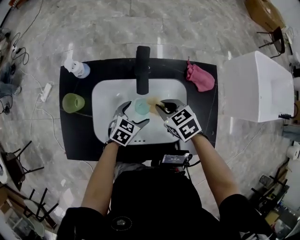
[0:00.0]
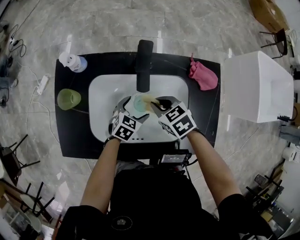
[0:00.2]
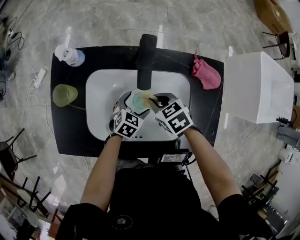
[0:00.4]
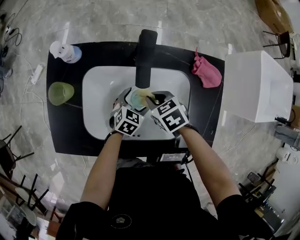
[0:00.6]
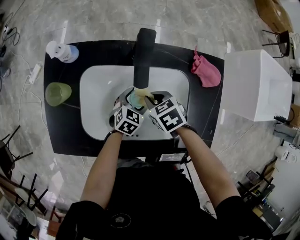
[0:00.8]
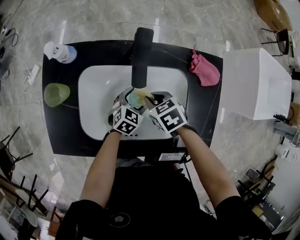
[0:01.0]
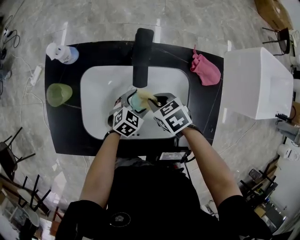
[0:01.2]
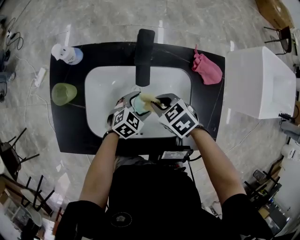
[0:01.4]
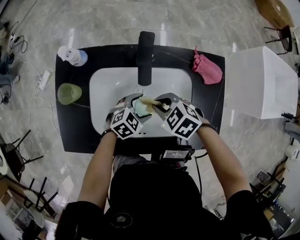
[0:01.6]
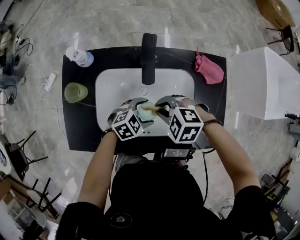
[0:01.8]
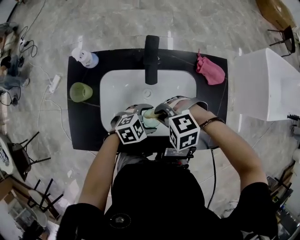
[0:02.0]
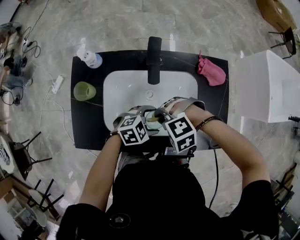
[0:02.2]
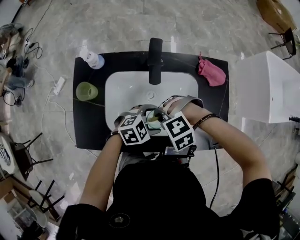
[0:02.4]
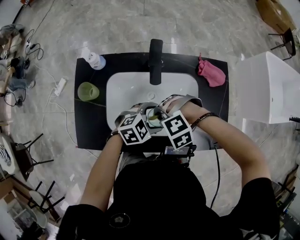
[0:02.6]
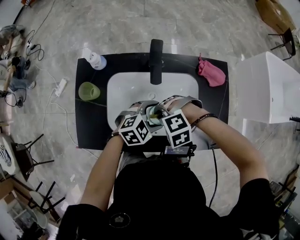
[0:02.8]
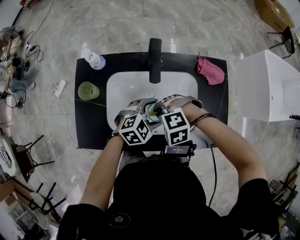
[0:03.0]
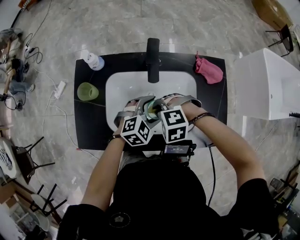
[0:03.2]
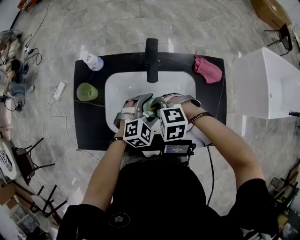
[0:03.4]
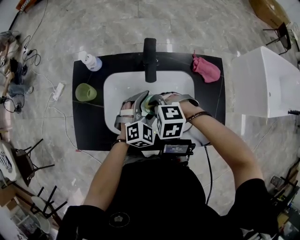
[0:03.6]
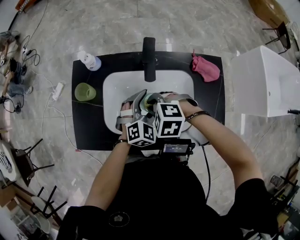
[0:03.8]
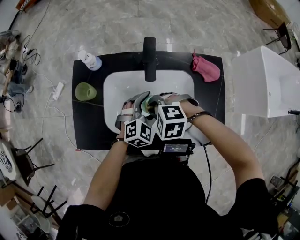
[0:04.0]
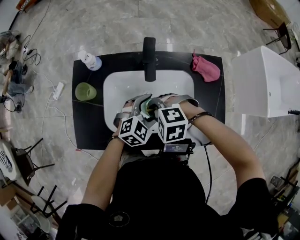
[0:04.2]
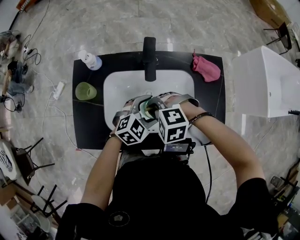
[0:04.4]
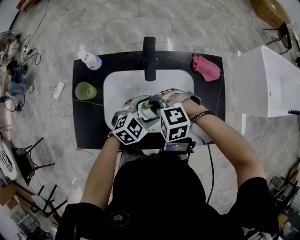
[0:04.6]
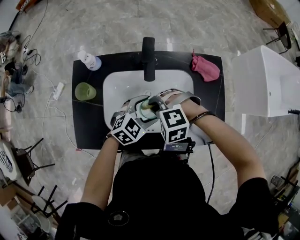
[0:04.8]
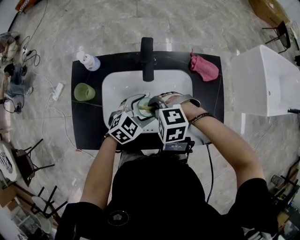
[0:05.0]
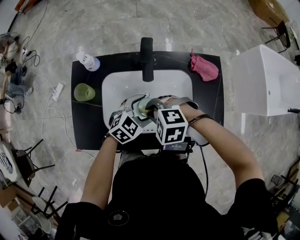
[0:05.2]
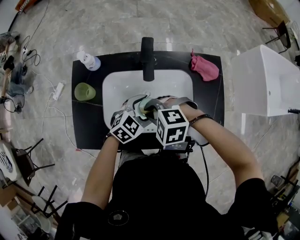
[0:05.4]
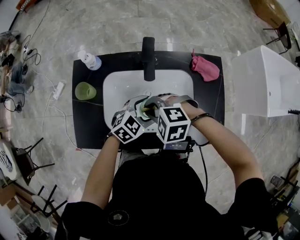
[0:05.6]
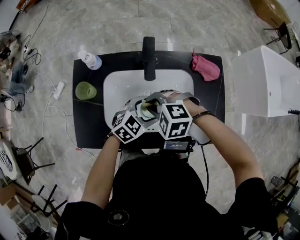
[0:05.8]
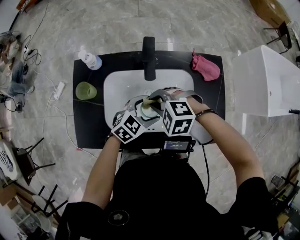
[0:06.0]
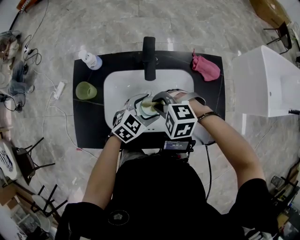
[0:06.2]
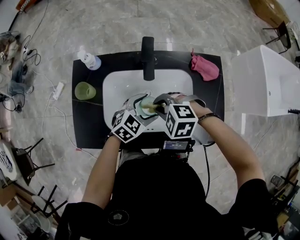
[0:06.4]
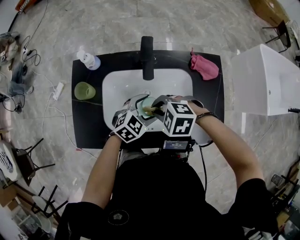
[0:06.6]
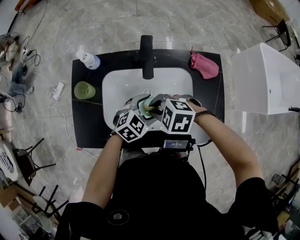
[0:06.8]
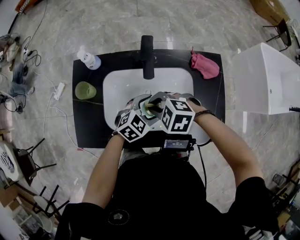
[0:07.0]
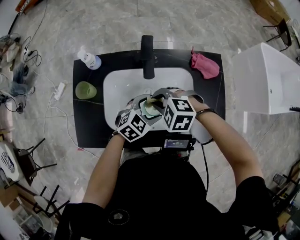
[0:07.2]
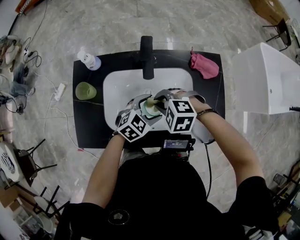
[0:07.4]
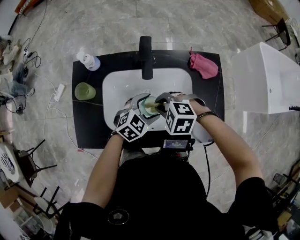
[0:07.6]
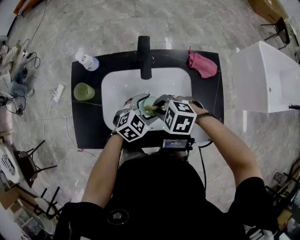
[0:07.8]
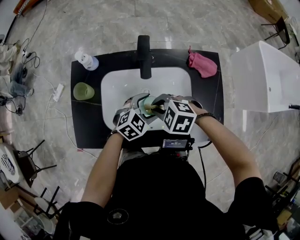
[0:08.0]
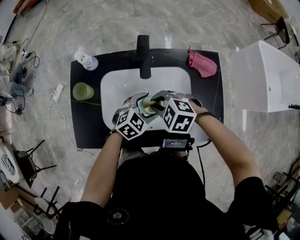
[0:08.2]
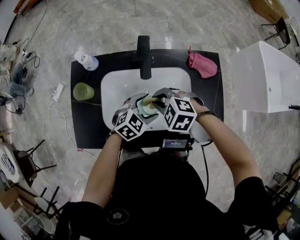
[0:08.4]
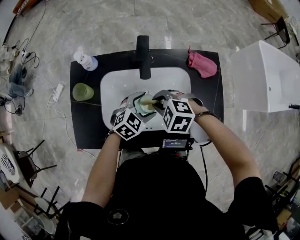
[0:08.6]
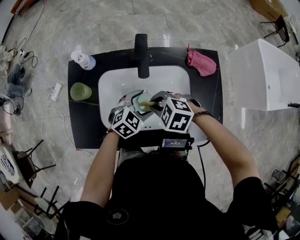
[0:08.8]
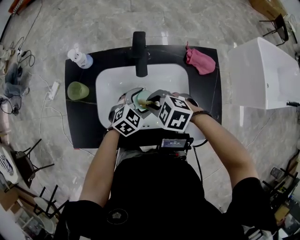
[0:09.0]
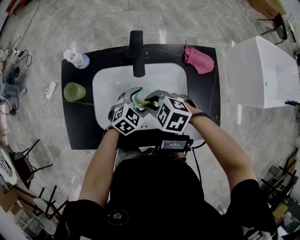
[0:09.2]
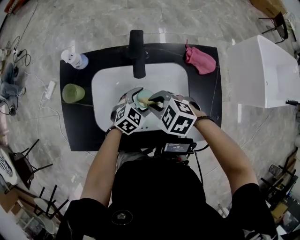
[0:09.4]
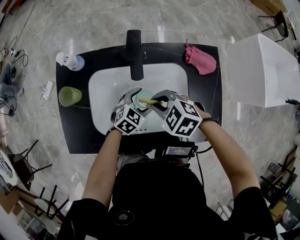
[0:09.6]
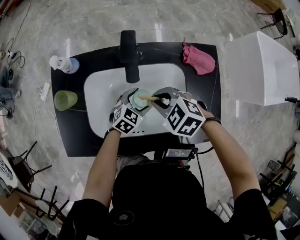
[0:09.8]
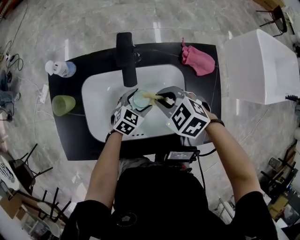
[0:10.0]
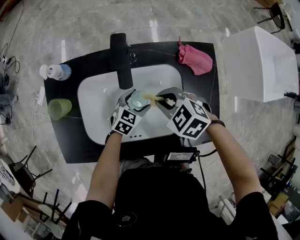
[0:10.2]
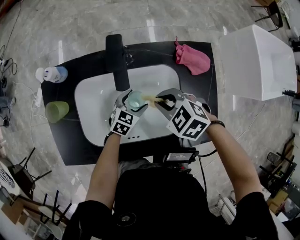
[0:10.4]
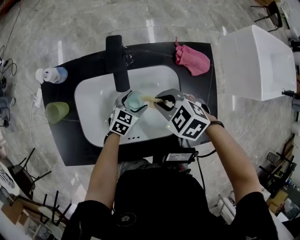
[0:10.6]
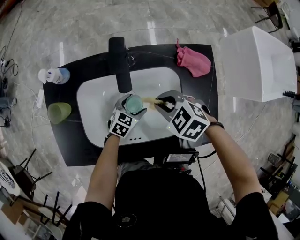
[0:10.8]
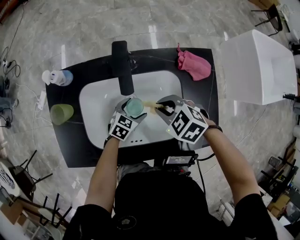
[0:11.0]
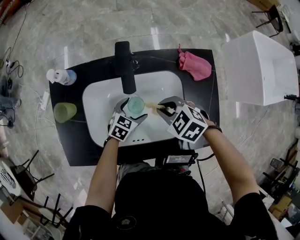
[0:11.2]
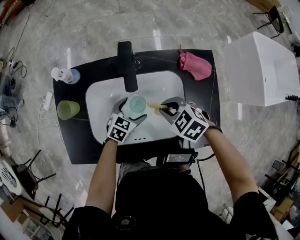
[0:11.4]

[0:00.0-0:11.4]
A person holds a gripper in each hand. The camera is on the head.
1.4 to 2.8 s: The left gripper heads upward, covering approximately 10 cm, and changes its angle by about 20 degrees. Meanwhile the right gripper changes place by roughly 10 cm, and rotates around the line of its fingers by roughly 60 degrees, counterclockwise from behind.
4.2 to 7.2 s: The grippers move only a little.
7.2 to 8.6 s: The grippers stay close to where they were, moving slightly.
8.6 to 10.0 s: The right gripper ends up roughly 5 cm from where it was. Meanwhile the left gripper travels downward by about 10 cm.
10.0 to 11.4 s: The grippers stay close to where they were, moving slightly.

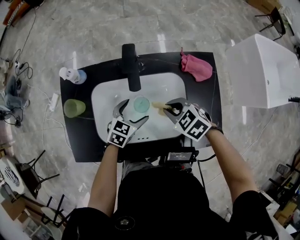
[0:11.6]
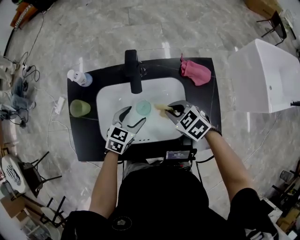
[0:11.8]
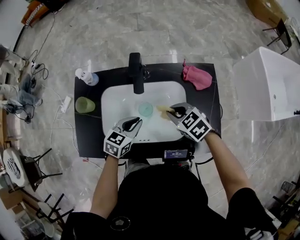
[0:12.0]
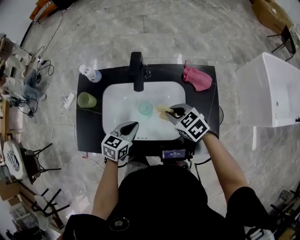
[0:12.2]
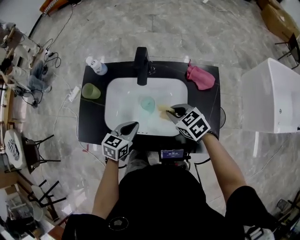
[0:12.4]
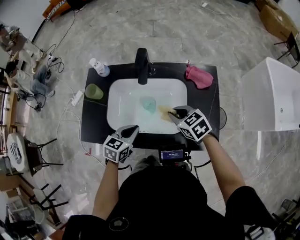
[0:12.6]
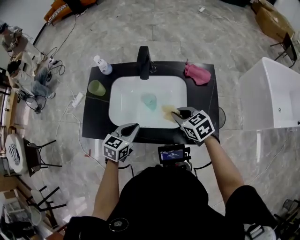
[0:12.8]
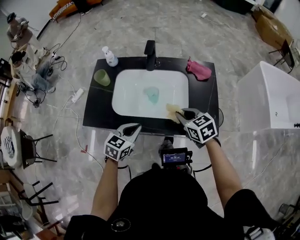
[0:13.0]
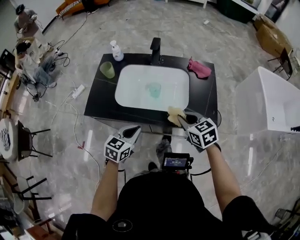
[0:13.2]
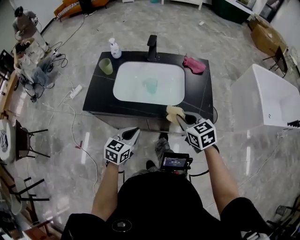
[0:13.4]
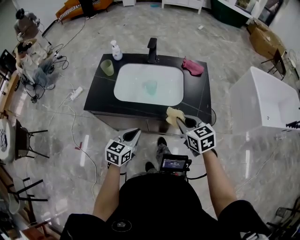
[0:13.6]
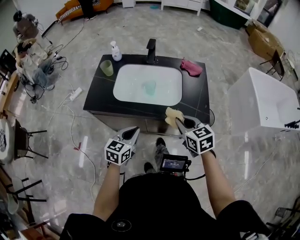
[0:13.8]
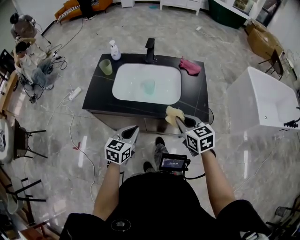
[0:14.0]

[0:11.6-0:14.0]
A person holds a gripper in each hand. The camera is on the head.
11.6 to 12.8 s: The right gripper moves backward and upward, some 10 cm, while the left gripper goes about 15 cm backward and upward, and closes its fingers.
12.8 to 14.0 s: The left gripper heads backward, covering some 15 cm; the right gripper shifts approximately 20 cm backward and upward.

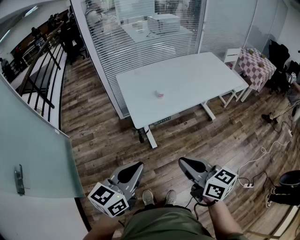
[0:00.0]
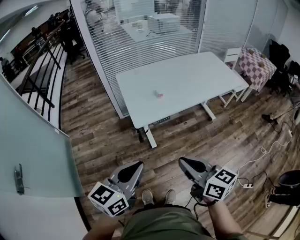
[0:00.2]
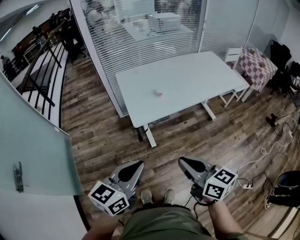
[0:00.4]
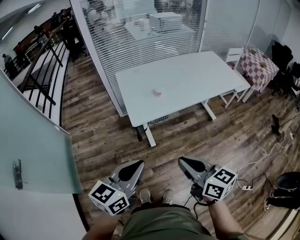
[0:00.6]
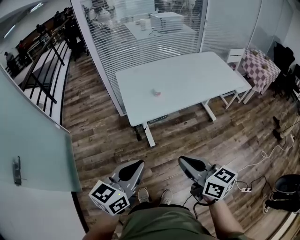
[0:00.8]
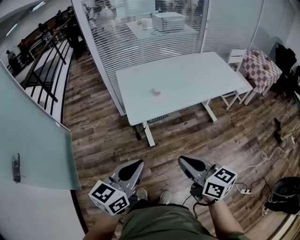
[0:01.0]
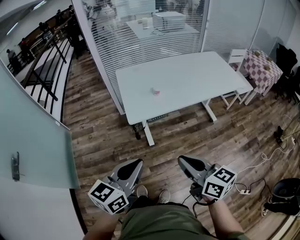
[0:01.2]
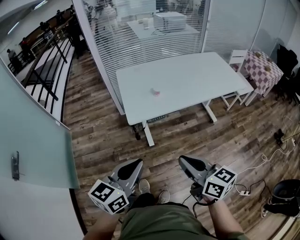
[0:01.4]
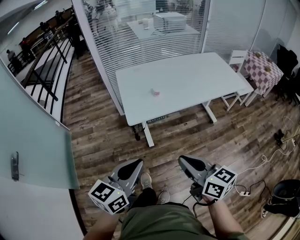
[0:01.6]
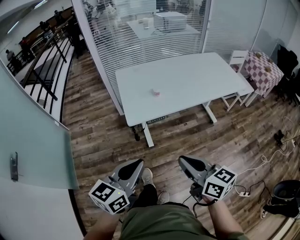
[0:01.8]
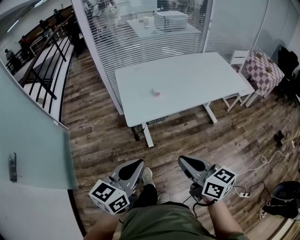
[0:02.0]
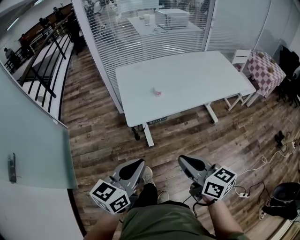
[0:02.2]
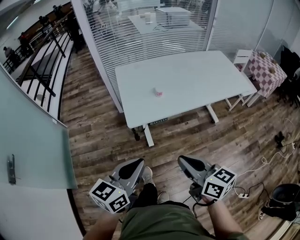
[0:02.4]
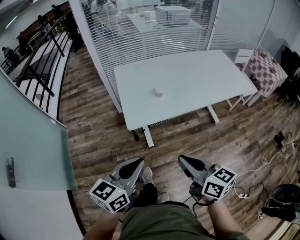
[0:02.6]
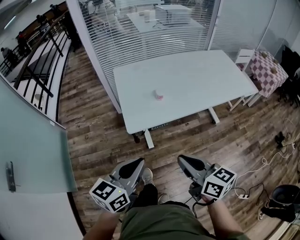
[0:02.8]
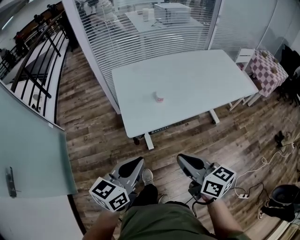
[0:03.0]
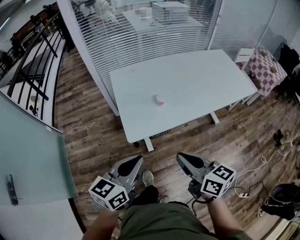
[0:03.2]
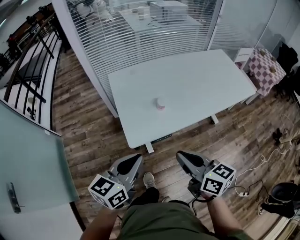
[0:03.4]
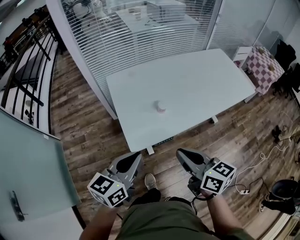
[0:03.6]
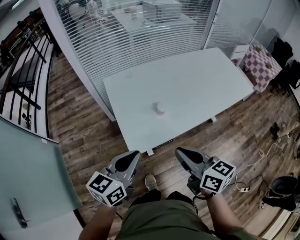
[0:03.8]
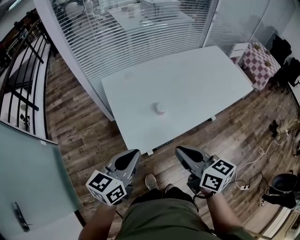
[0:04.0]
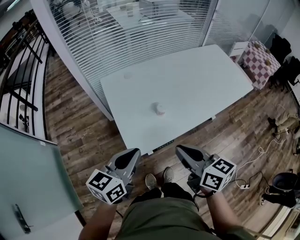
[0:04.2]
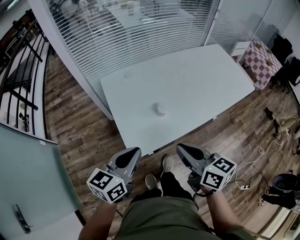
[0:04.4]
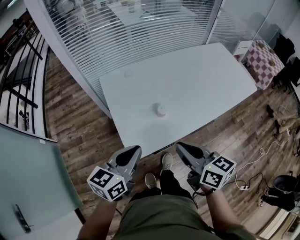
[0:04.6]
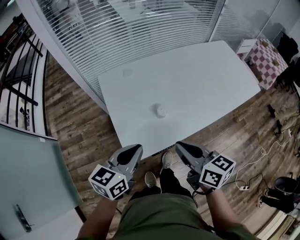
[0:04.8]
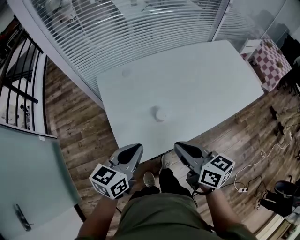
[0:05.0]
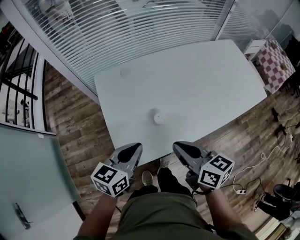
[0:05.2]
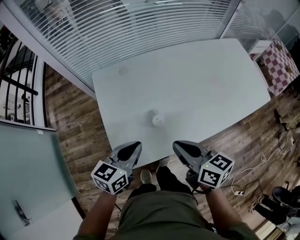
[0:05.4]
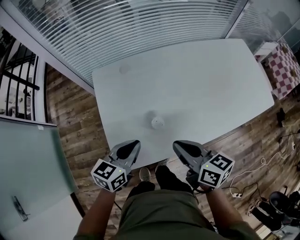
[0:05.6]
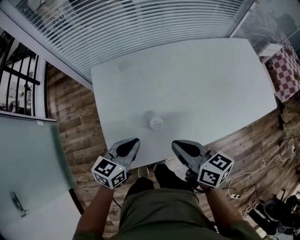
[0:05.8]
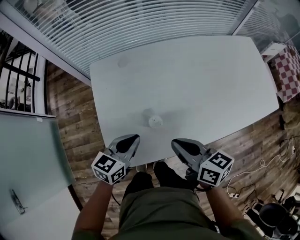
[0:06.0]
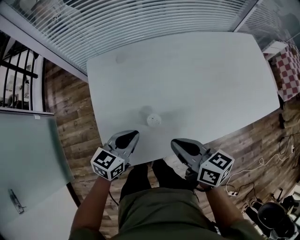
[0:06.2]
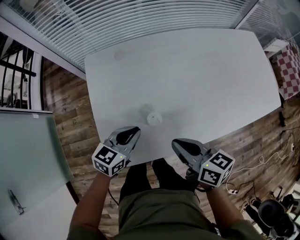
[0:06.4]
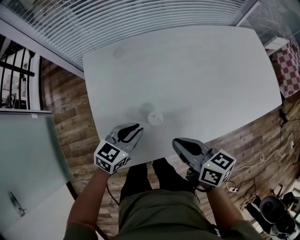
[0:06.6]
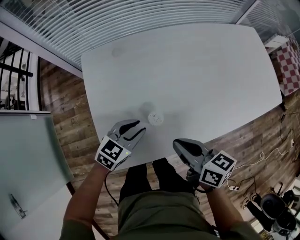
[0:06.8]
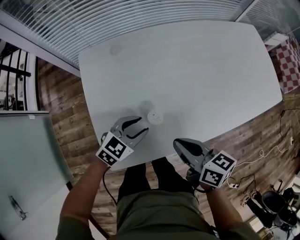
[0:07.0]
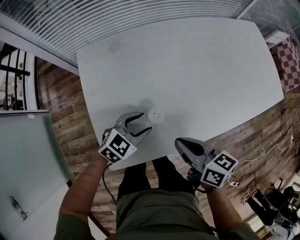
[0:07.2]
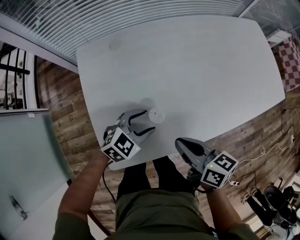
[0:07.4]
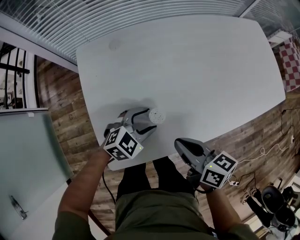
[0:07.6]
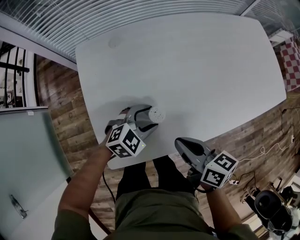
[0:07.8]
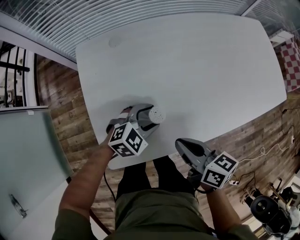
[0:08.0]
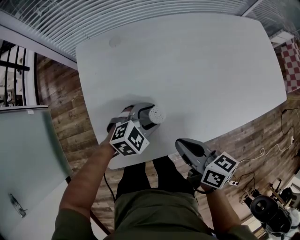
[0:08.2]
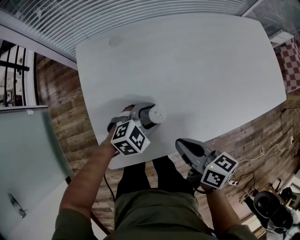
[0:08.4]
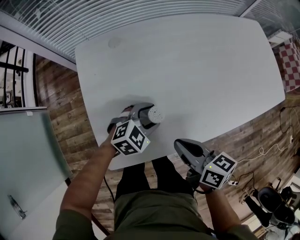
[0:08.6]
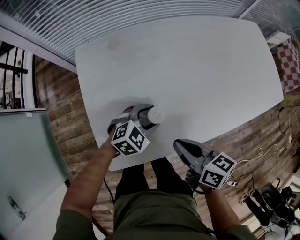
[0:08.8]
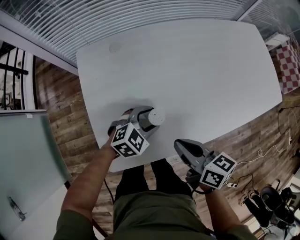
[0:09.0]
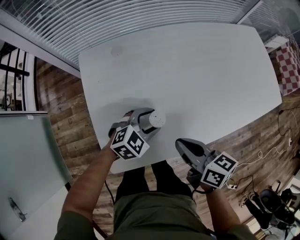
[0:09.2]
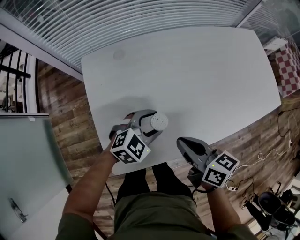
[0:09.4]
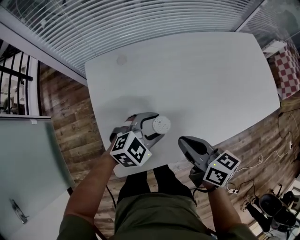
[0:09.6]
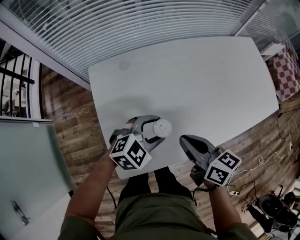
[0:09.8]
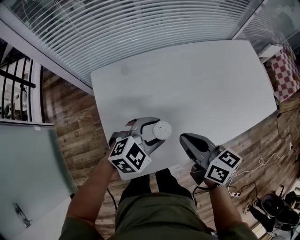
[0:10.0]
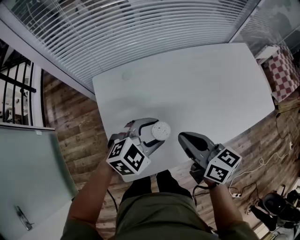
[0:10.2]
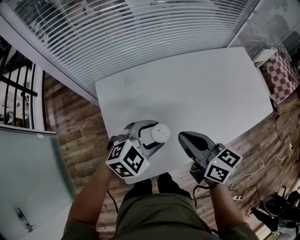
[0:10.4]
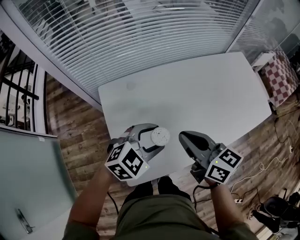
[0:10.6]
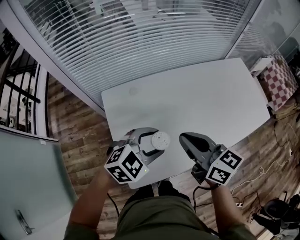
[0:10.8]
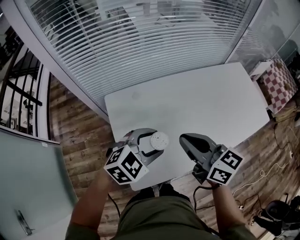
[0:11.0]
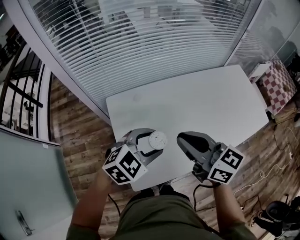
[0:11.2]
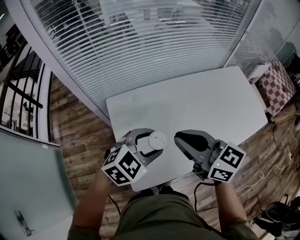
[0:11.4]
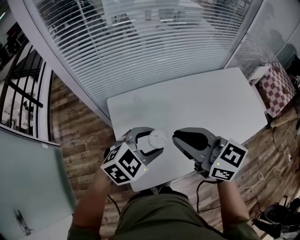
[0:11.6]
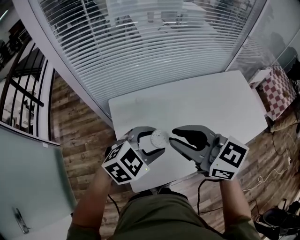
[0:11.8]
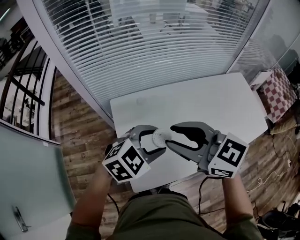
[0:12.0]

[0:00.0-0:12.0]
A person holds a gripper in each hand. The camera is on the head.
0.0 to 1.6 s: The two grippers go about 10 cm to the right.
1.6 to 3.0 s: The two grippers go some 15 cm forward.
3.0 to 4.4 s: The two grippers go about 15 cm forward.
4.4 to 6.0 s: Both grippers move forward, downward and to the right, about 20 cm.
6.0 to 7.6 s: The right gripper moves downward, about 5 cm. The left gripper travels downward and to the right by approximately 10 cm, swivels some 40 degrees, and opens.
7.6 to 9.0 s: The grippers make only small movements.
9.0 to 10.4 s: The right gripper moves upward and forward, approximately 15 cm, while the left gripper is displaced upward by approximately 20 cm.
10.4 to 12.0 s: The left gripper moves upward, some 10 cm. Meanwhile the right gripper goes some 20 cm upward and to the left, rotates roughly 40 degrees, and opens.
